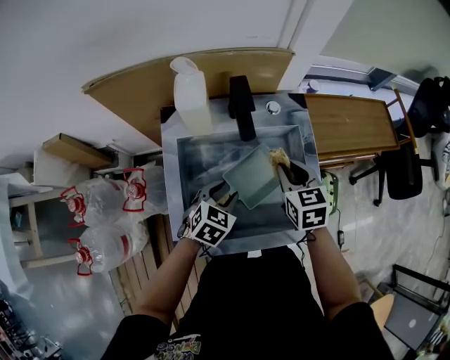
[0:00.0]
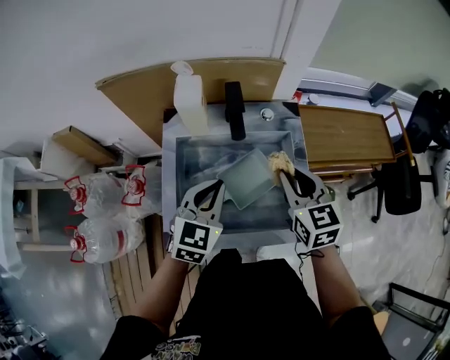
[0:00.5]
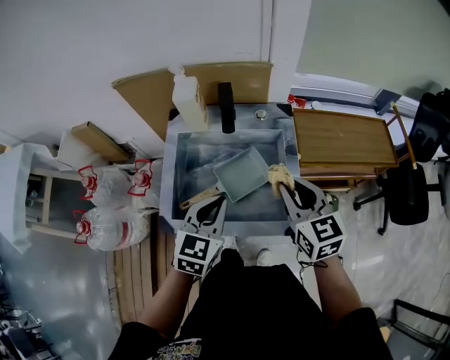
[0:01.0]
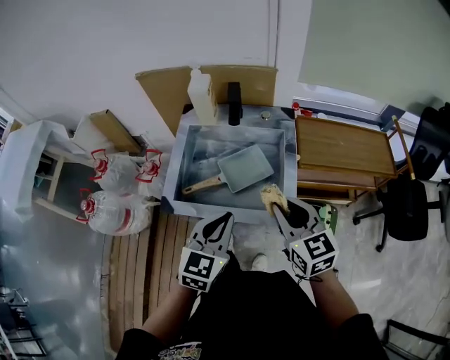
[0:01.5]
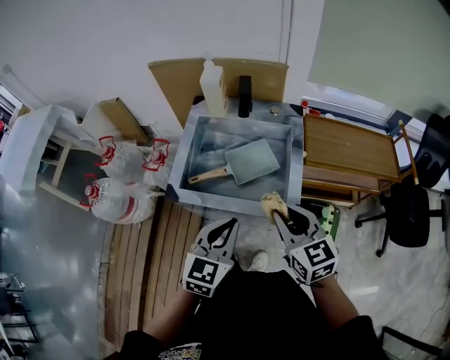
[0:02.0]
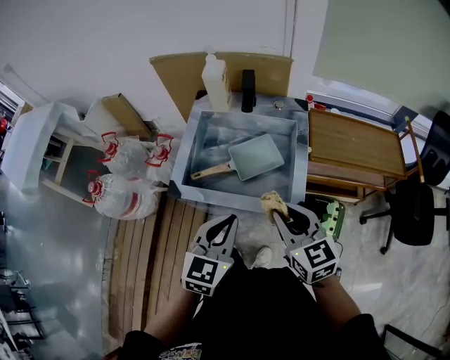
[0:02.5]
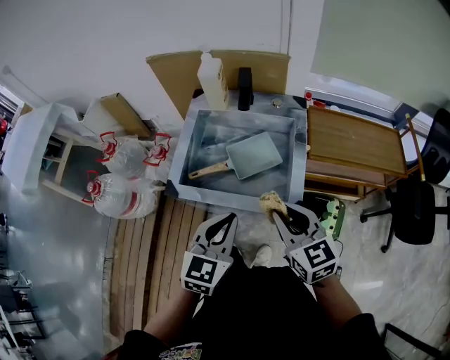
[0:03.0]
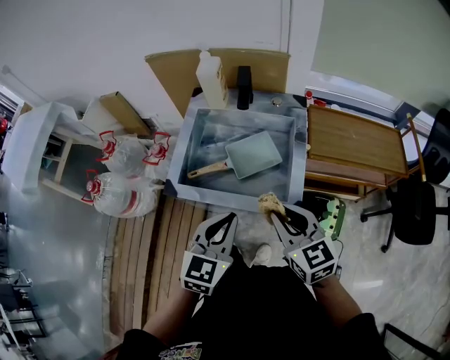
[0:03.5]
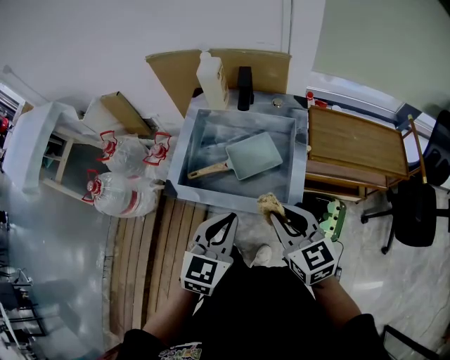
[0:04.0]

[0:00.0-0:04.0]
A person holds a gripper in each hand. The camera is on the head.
0:00.0 to 0:02.0: The left gripper ends up approximately 35 cm from where it was, swivels about 40 degrees, and closes, while the right gripper moves approximately 30 cm, and rotates roughly 30 degrees.
0:02.0 to 0:04.0: There are only small adjustments of the grippers.

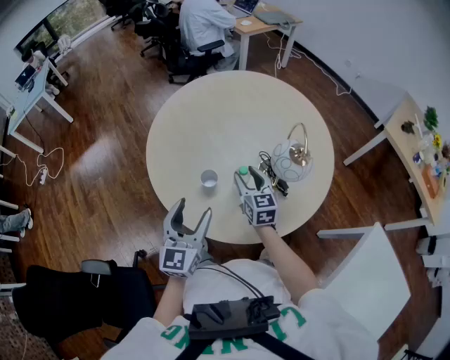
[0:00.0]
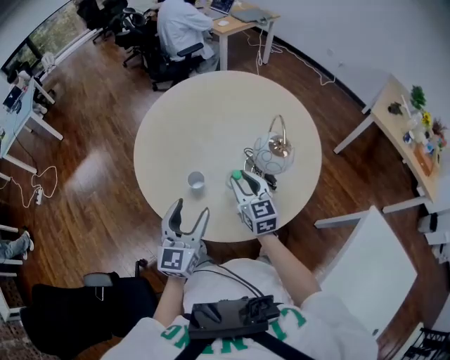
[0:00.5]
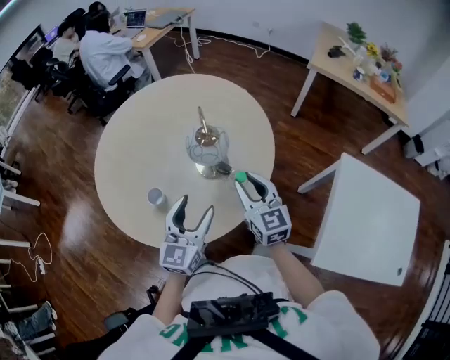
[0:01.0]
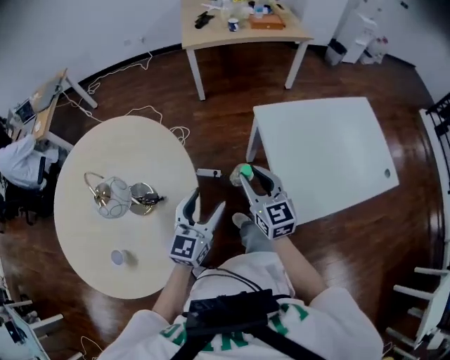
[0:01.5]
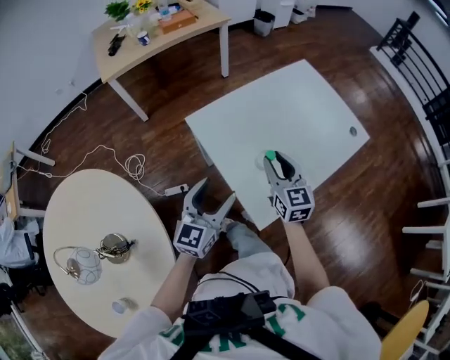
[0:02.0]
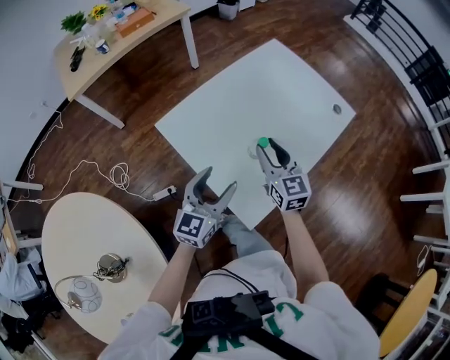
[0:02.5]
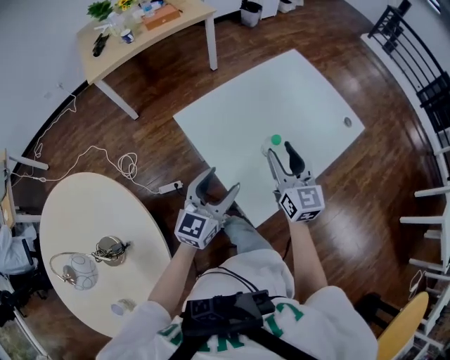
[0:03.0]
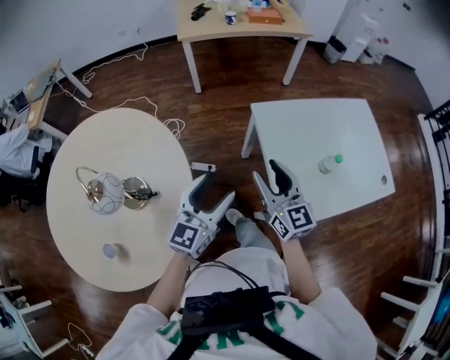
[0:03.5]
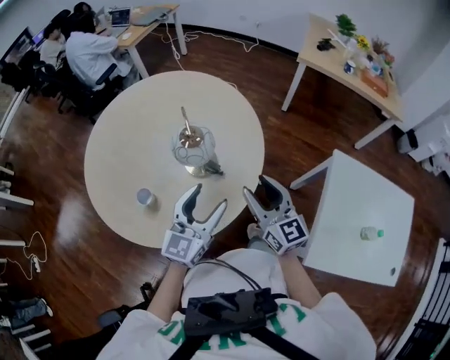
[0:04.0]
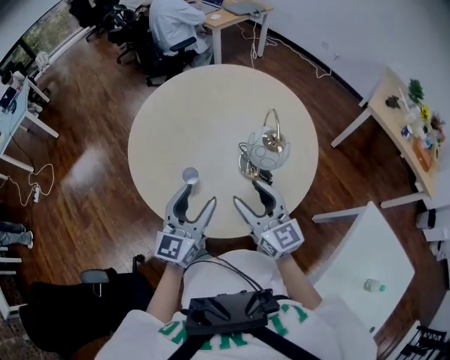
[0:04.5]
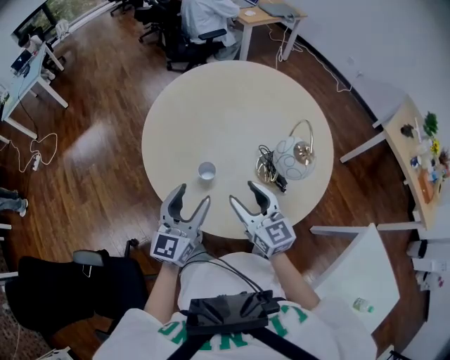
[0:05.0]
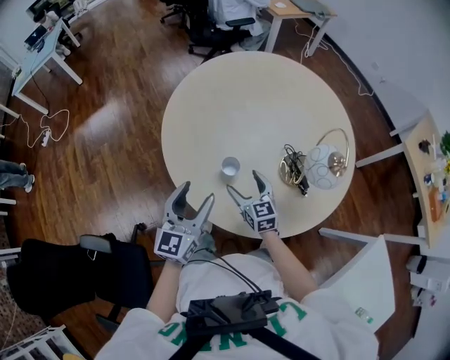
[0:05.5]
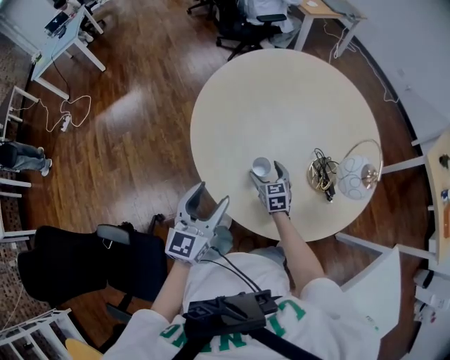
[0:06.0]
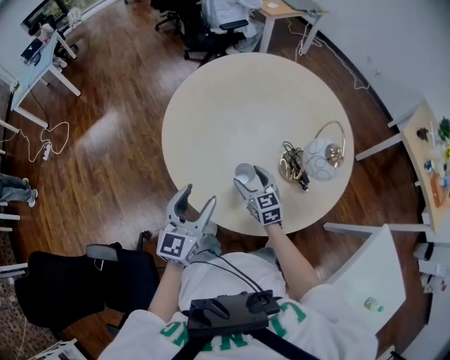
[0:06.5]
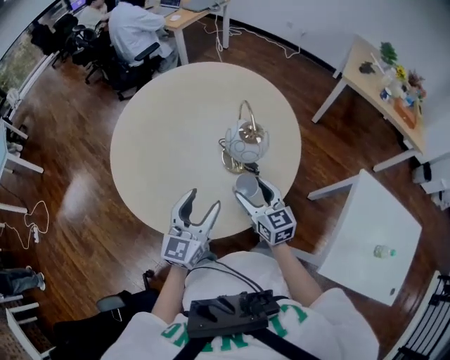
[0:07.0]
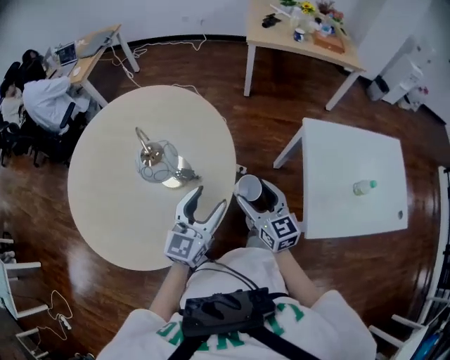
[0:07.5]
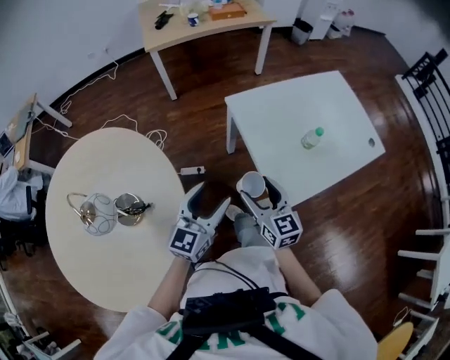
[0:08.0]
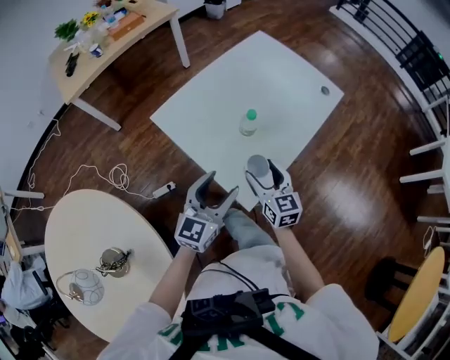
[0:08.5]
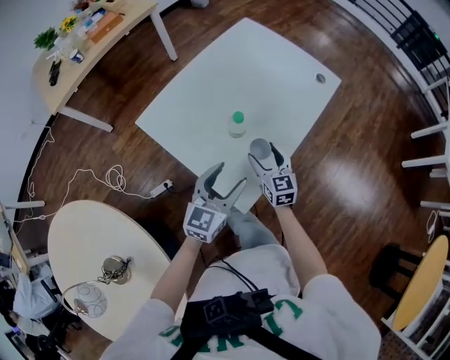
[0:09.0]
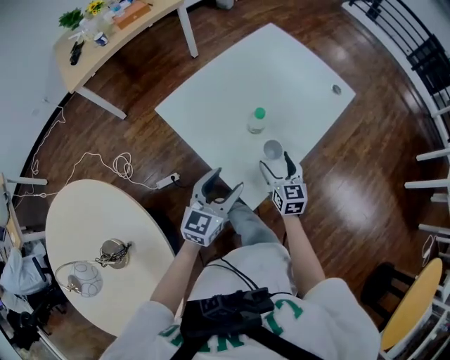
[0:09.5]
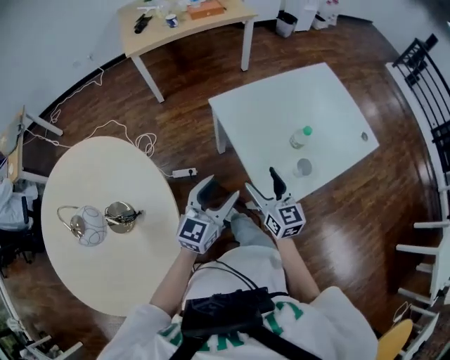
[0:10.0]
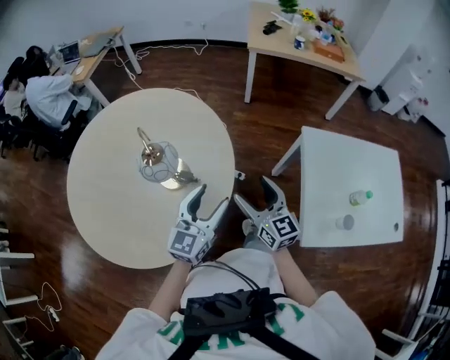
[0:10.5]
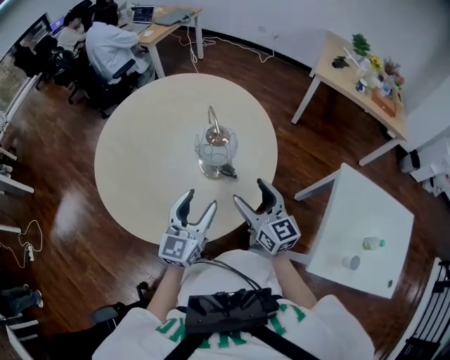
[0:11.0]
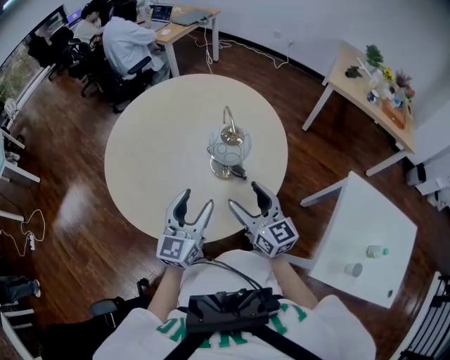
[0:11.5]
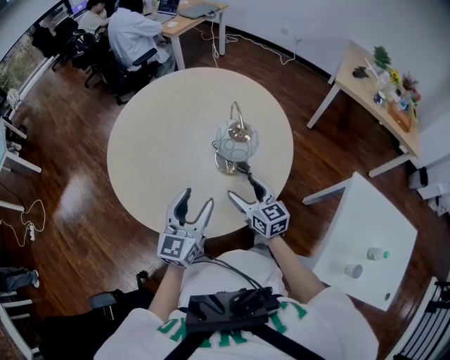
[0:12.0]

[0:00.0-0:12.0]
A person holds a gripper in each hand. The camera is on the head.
0:00.0 to 0:02.0: The two grippers travel together, about 70 cm. The left gripper changes its angle by about 100 degrees; the right gripper swivels some 90 degrees.
0:02.0 to 0:04.0: The two grippers travel together, approximately 50 cm. The left gripper swivels roughly 60 degrees. The right gripper swivels about 70 degrees.
0:04.0 to 0:06.0: The pair of grippers is taken roughly 40 cm. The right gripper angles its fingers downward, by roughly 40 degrees, and opens its fingers, while the left gripper rotates roughly 40 degrees.
0:06.0 to 0:08.0: The pair of grippers is taken approximately 60 cm. The right gripper rotates some 80 degrees. The left gripper rotates about 90 degrees.
0:08.0 to 0:10.0: The right gripper goes downward and returns, roughly 15 cm each way.
0:10.0 to 0:12.0: The pair of grippers is taken approximately 50 cm. The left gripper turns by some 70 degrees, while the right gripper turns by about 70 degrees.

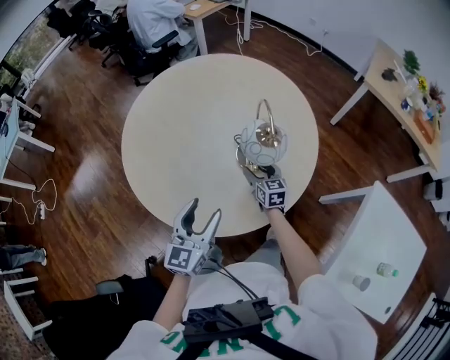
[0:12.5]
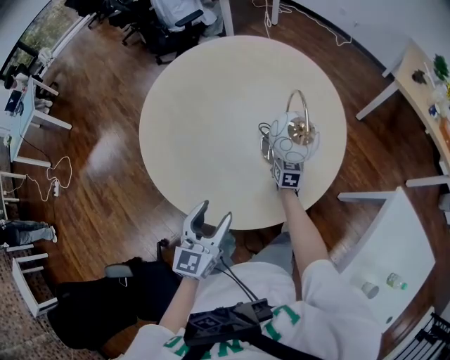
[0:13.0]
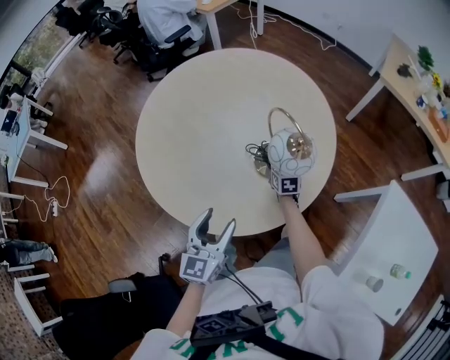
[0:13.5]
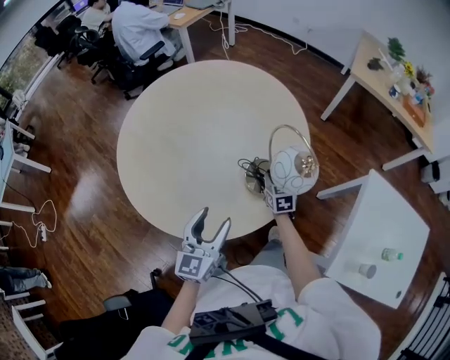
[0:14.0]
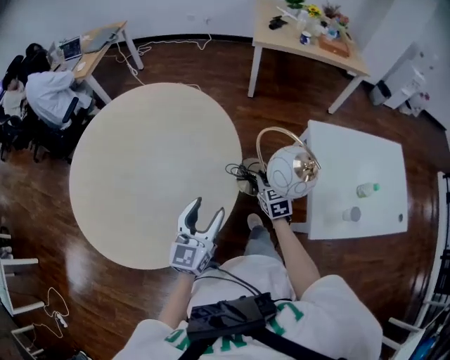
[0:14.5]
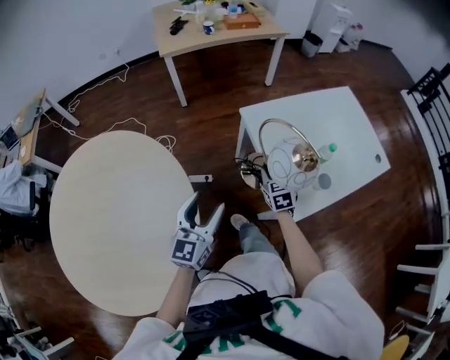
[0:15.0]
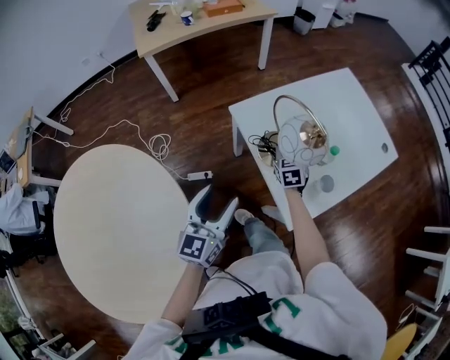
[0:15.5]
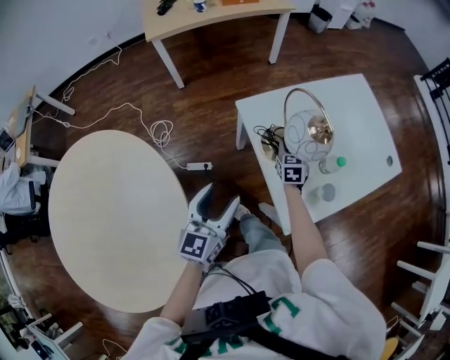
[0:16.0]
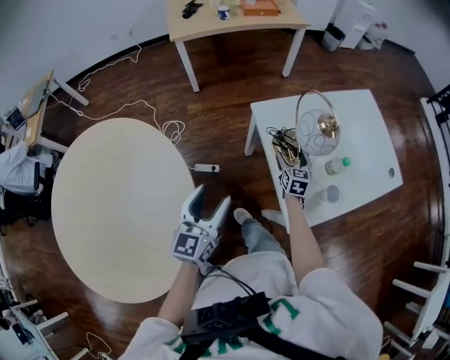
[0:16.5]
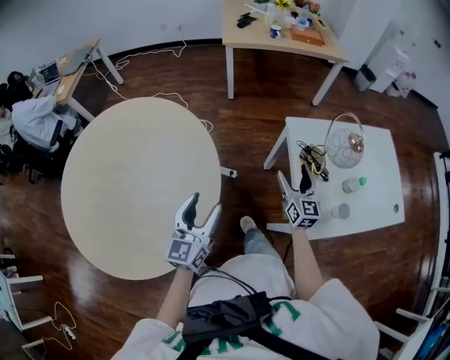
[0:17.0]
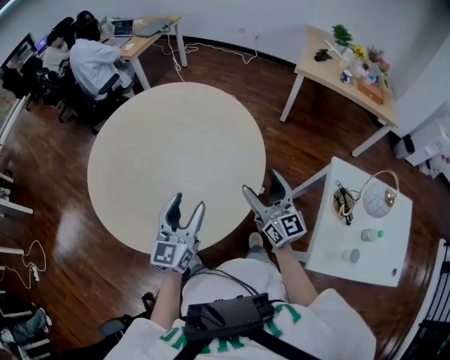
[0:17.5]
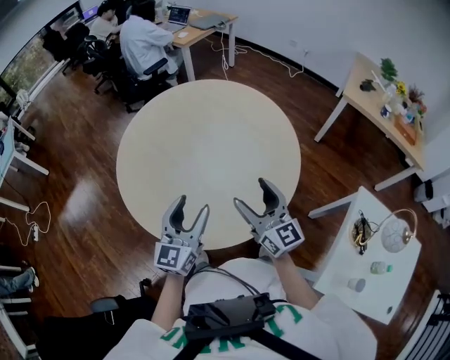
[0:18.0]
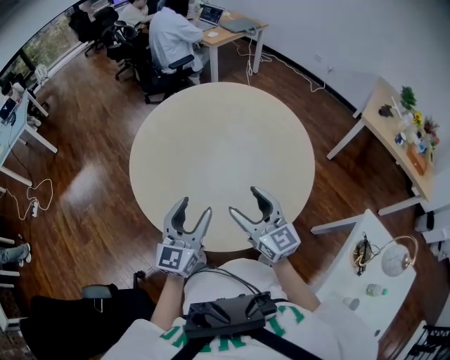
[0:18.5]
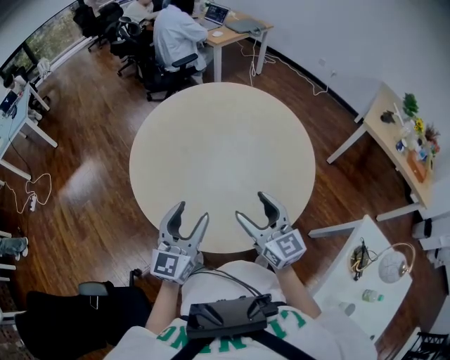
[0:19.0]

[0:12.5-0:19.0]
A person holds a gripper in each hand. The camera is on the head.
0:12.5 to 0:14.5: The left gripper moves some 20 cm, and turns by roughly 30 degrees. The right gripper moves roughly 30 cm, swivels approximately 30 degrees, and closes its fingers.
0:14.5 to 0:17.0: The right gripper rotates some 40 degrees, and opens up.
0:17.0 to 0:19.0: The left gripper moves some 35 cm, and turns by some 50 degrees; the right gripper shifts by roughly 50 cm, and rotates roughly 70 degrees.

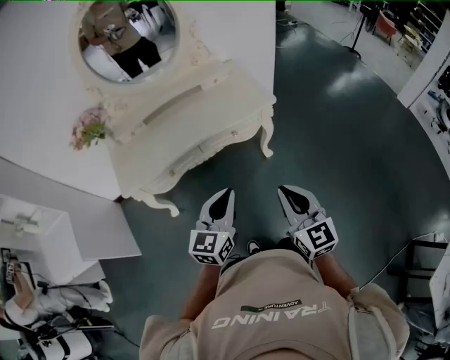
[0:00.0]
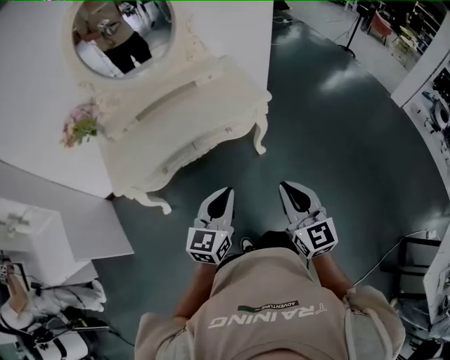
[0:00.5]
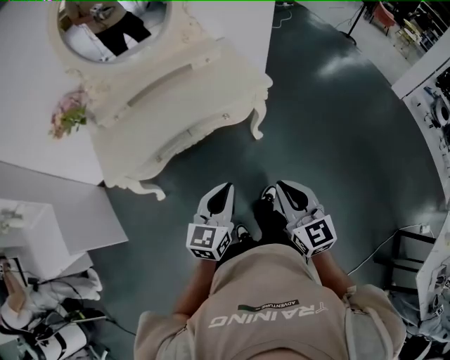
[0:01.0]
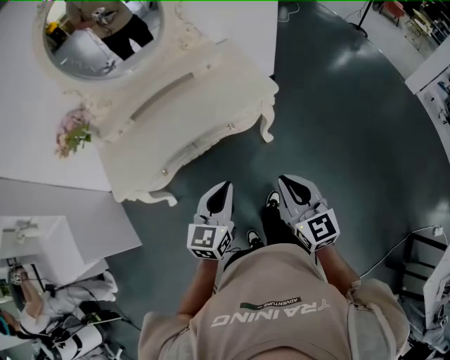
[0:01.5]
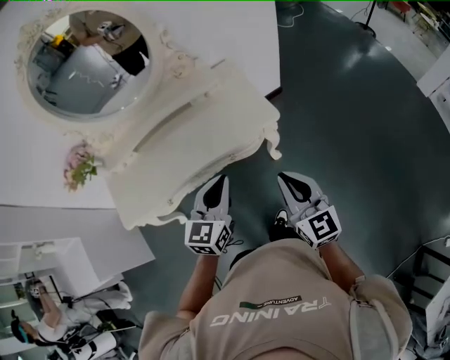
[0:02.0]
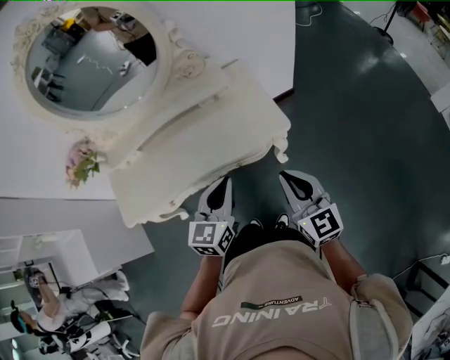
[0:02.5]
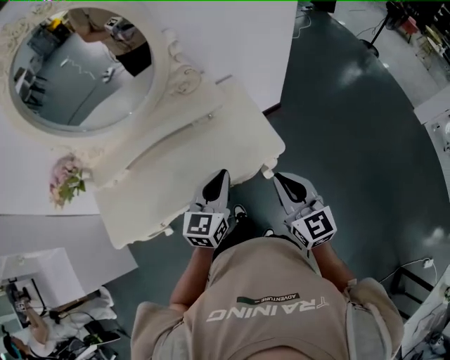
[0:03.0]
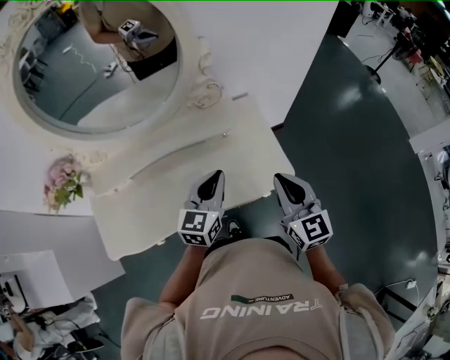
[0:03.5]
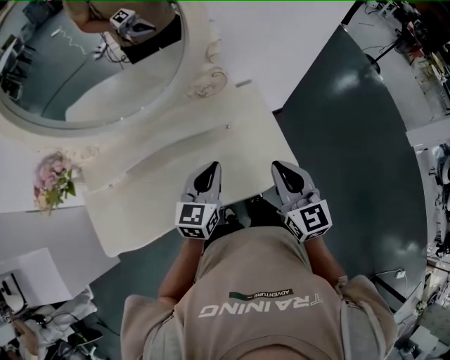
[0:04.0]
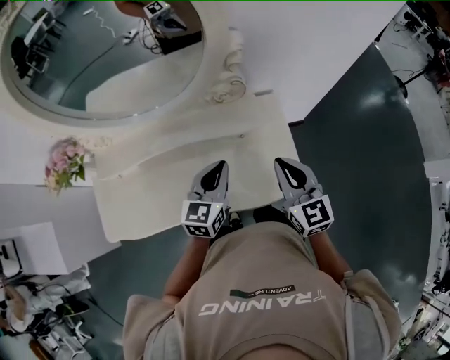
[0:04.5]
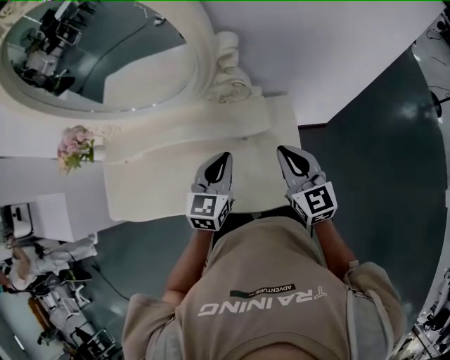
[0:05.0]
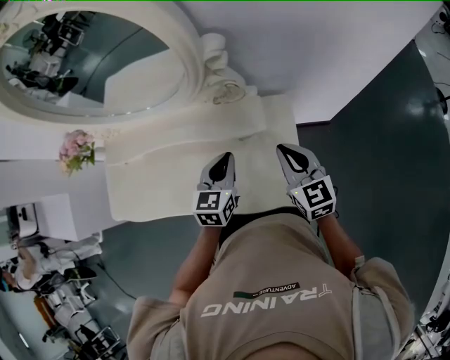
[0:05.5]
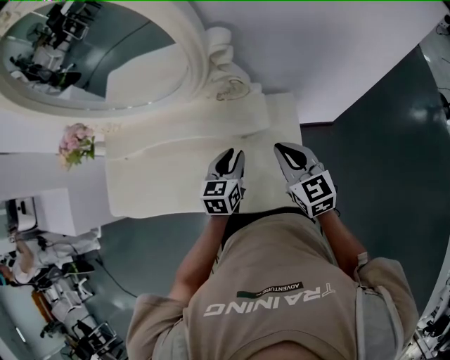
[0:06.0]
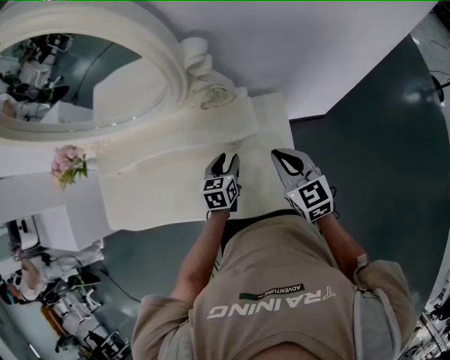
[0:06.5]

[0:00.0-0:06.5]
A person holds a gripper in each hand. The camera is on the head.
0:00.0 to 0:02.0: The two grippers go about 25 cm forward.
0:02.0 to 0:04.5: Both grippers move forward, about 30 cm.
0:04.5 to 0:06.5: The grippers both shift downward, forward and to the right by about 15 cm. The left gripper rotates about 30 degrees, and opens its fingers.
